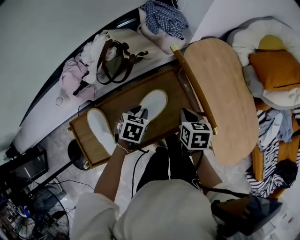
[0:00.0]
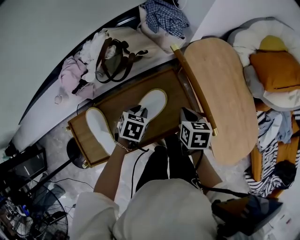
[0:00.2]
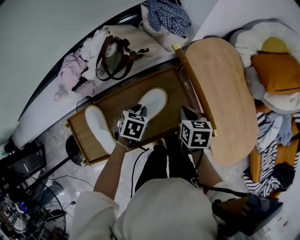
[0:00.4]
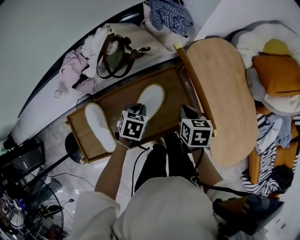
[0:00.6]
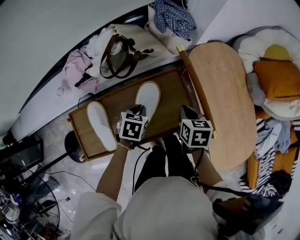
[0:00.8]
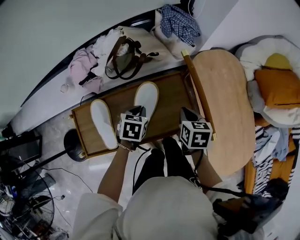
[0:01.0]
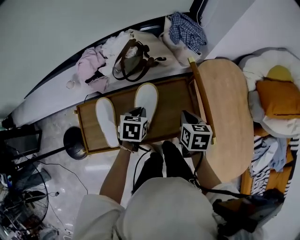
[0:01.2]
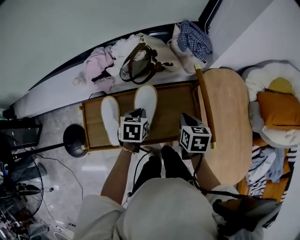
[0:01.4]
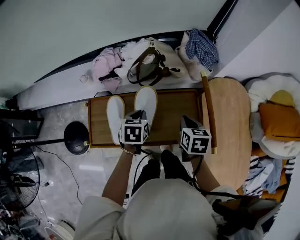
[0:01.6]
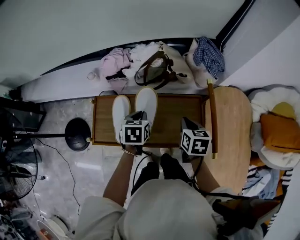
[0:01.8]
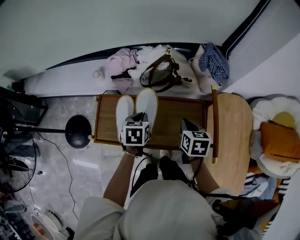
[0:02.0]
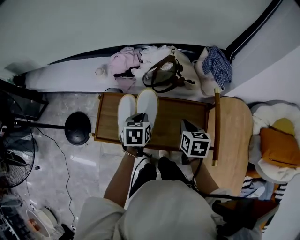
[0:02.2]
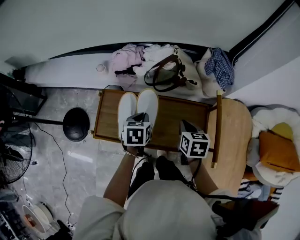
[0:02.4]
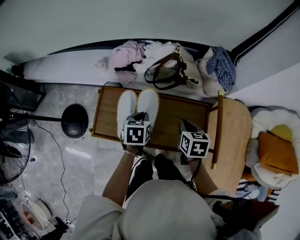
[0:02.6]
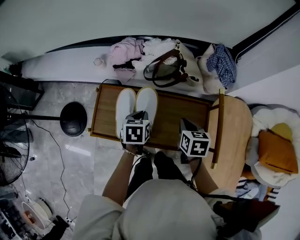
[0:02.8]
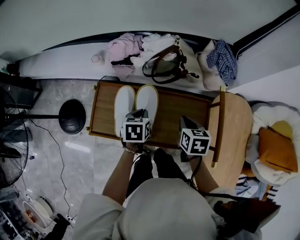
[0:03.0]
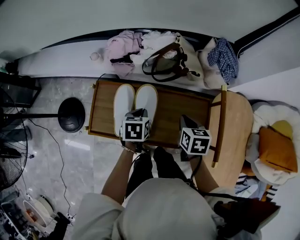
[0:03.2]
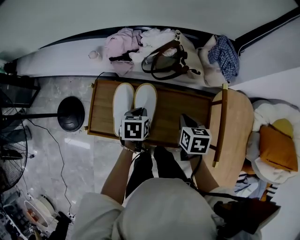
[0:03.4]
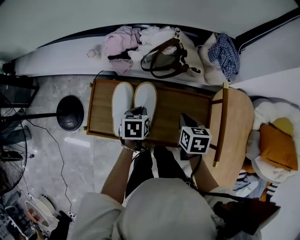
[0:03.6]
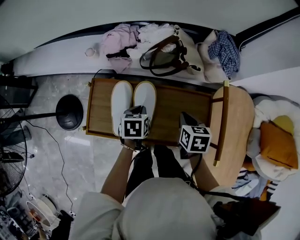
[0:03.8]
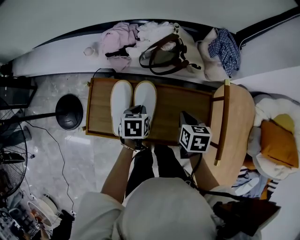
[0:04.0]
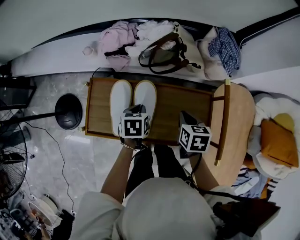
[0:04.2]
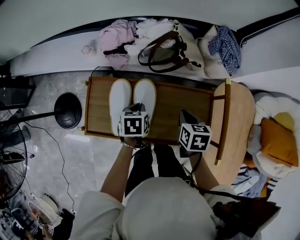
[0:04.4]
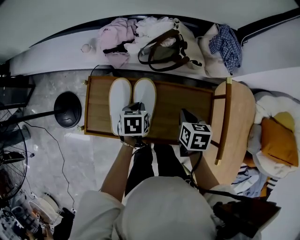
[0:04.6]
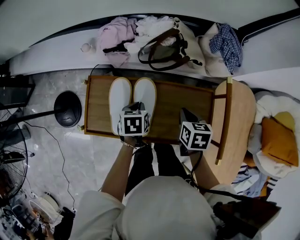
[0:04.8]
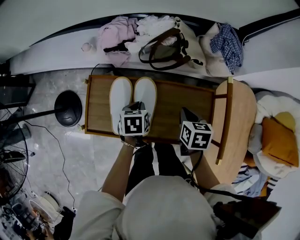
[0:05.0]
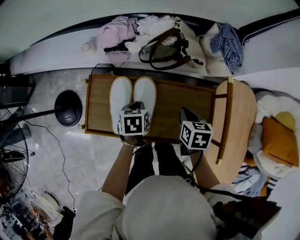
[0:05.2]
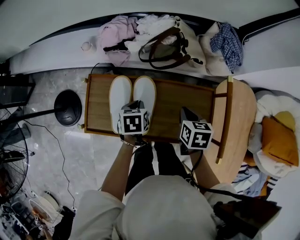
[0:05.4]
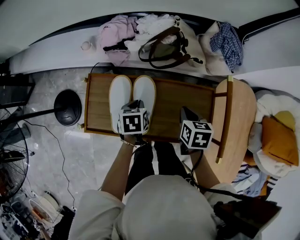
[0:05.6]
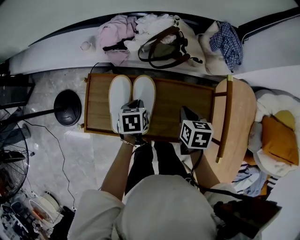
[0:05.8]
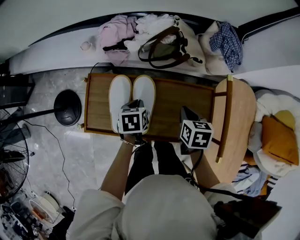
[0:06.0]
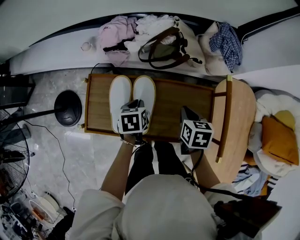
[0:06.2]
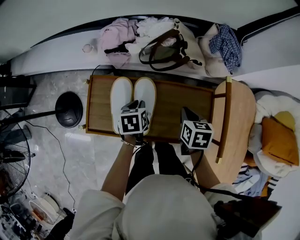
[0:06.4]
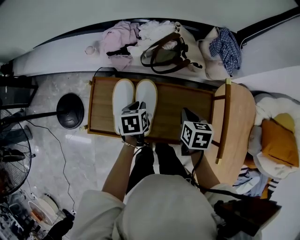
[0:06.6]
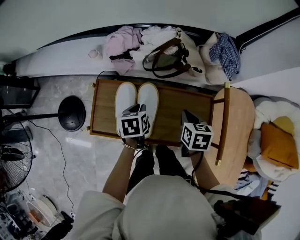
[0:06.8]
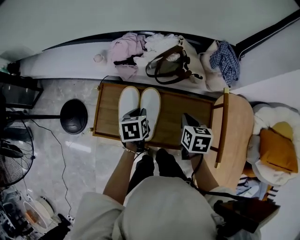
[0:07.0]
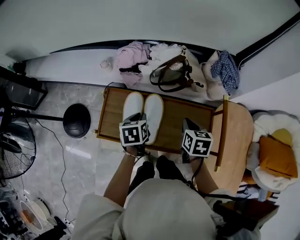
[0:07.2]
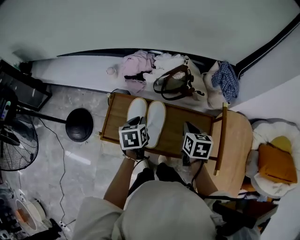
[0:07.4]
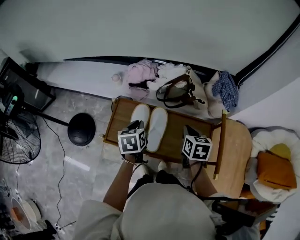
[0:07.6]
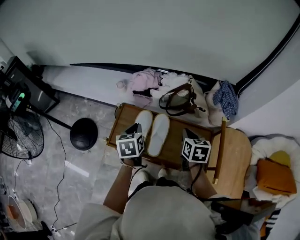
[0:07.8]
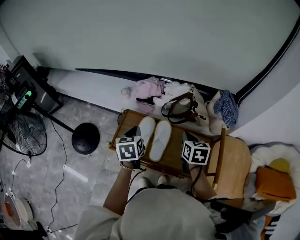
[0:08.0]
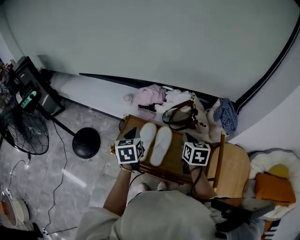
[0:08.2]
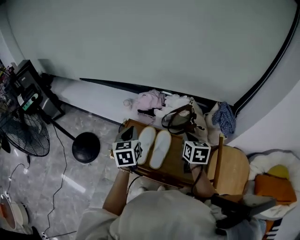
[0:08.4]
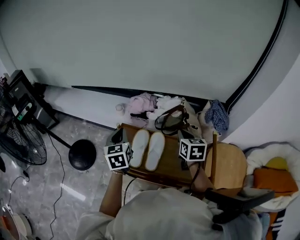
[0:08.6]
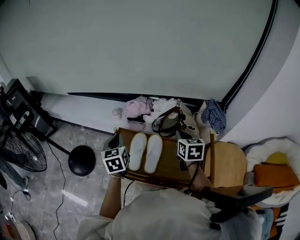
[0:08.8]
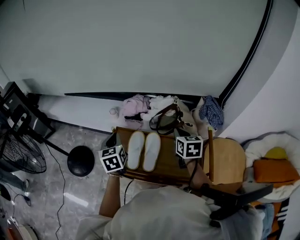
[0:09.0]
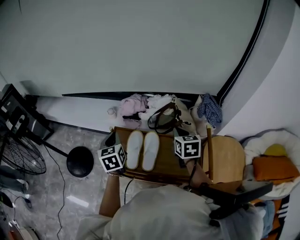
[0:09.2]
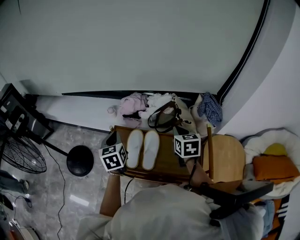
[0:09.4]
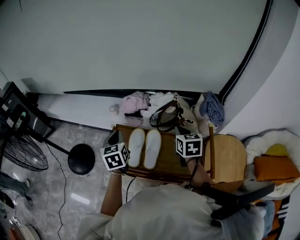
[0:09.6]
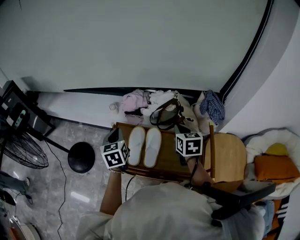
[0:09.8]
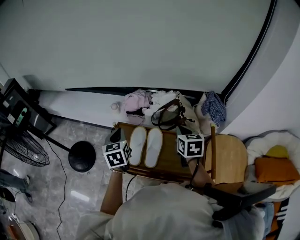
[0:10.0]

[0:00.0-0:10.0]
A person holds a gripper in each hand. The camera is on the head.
0:00.0 to 0:01.4: The left gripper moves to the left and upward, approximately 10 cm, and changes its angle by roughly 30 degrees, while the right gripper moves roughly 5 cm.
0:01.4 to 0:02.8: The two grippers go some 10 cm to the left. The left gripper changes its angle by about 20 degrees.
0:02.8 to 0:04.2: The left gripper moves downward, about 5 cm.
0:04.2 to 0:05.8: The grippers make only small movements.
0:05.8 to 0:07.2: Both grippers travel together upward, about 5 cm.
0:07.2 to 0:08.6: The right gripper shifts roughly 15 cm upward and forward, and rotates some 20 degrees, while the left gripper shifts roughly 20 cm upward and to the left, and rotates approximately 40 degrees.
0:08.6 to 0:10.0: There are only small adjustments of the grippers.

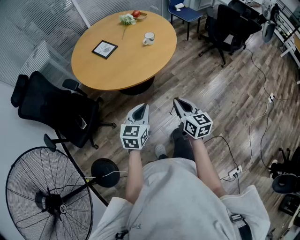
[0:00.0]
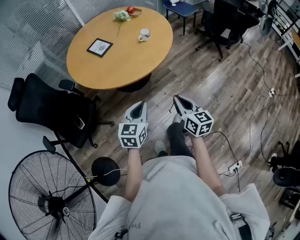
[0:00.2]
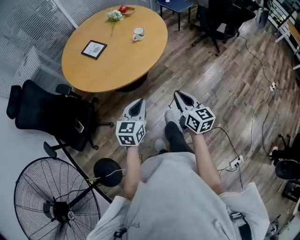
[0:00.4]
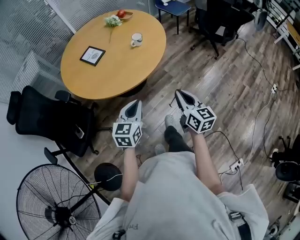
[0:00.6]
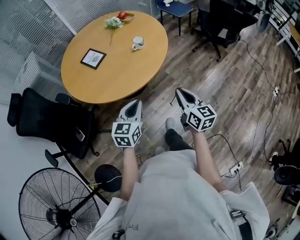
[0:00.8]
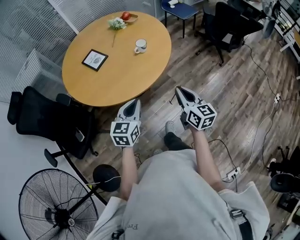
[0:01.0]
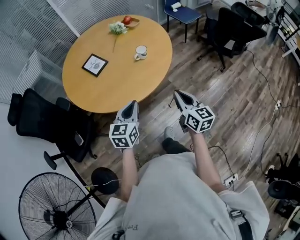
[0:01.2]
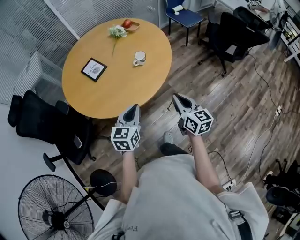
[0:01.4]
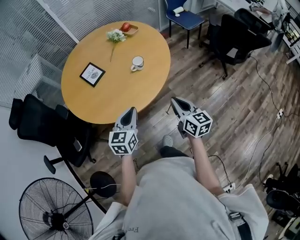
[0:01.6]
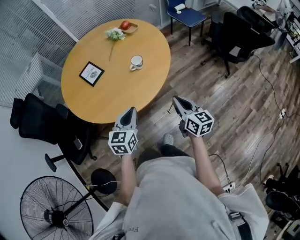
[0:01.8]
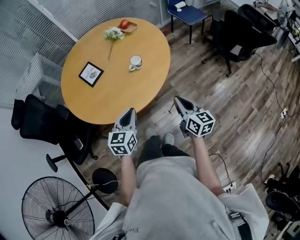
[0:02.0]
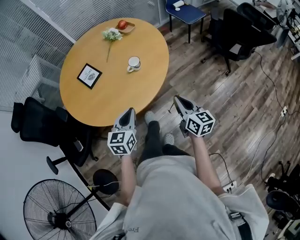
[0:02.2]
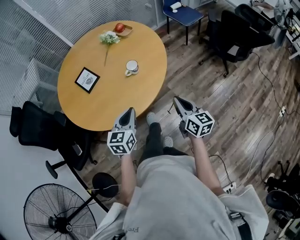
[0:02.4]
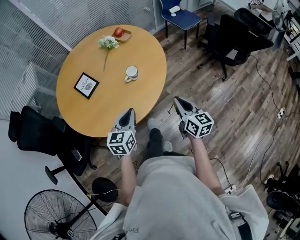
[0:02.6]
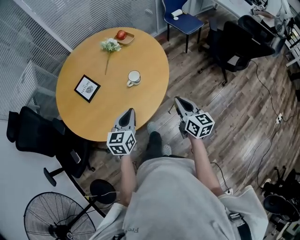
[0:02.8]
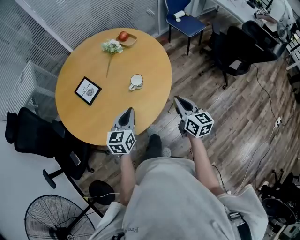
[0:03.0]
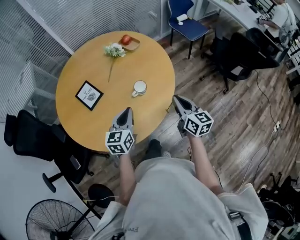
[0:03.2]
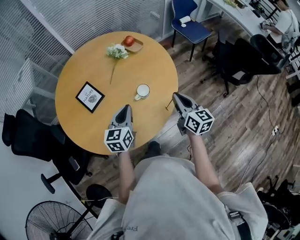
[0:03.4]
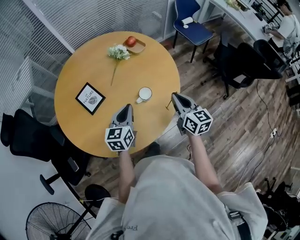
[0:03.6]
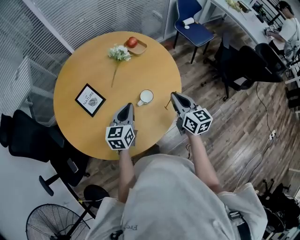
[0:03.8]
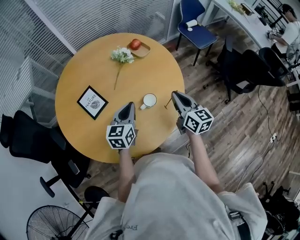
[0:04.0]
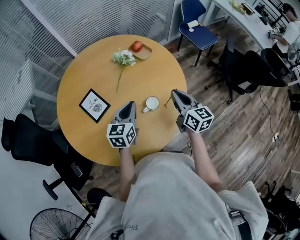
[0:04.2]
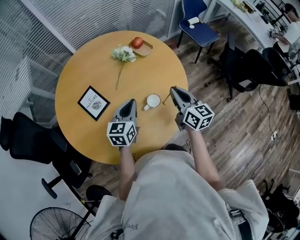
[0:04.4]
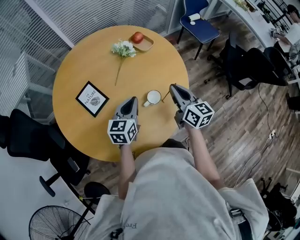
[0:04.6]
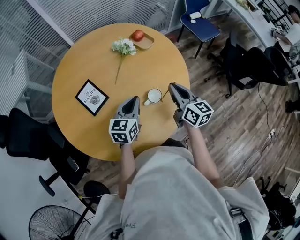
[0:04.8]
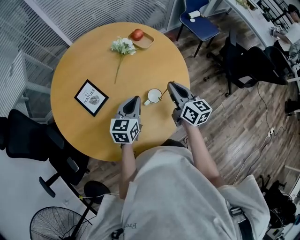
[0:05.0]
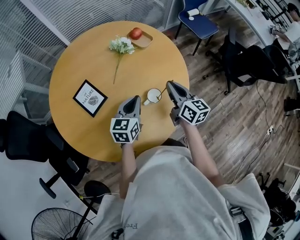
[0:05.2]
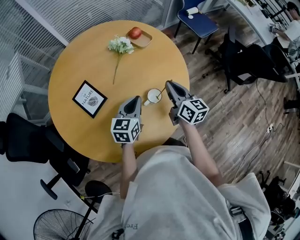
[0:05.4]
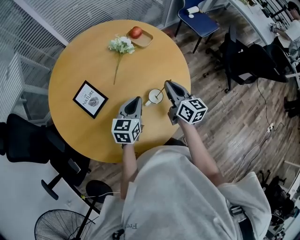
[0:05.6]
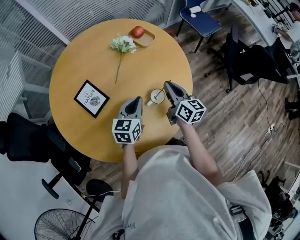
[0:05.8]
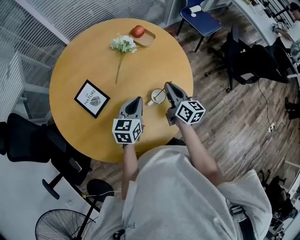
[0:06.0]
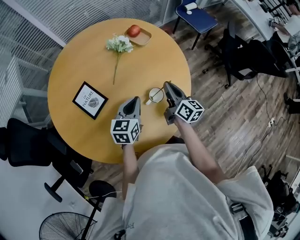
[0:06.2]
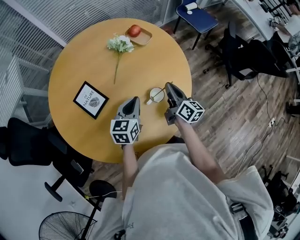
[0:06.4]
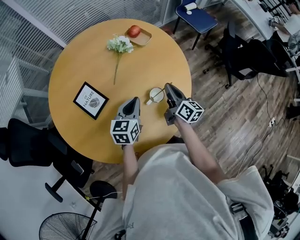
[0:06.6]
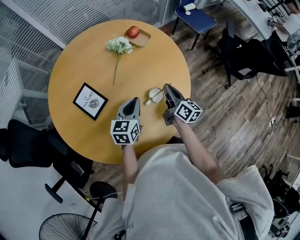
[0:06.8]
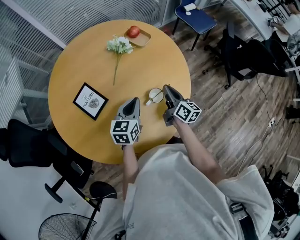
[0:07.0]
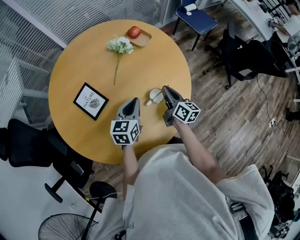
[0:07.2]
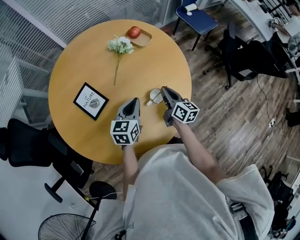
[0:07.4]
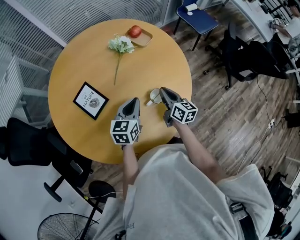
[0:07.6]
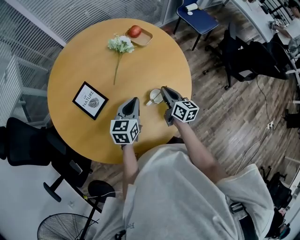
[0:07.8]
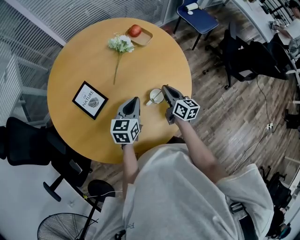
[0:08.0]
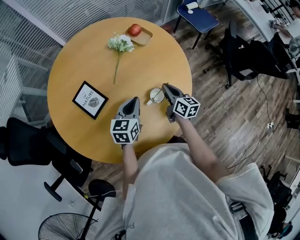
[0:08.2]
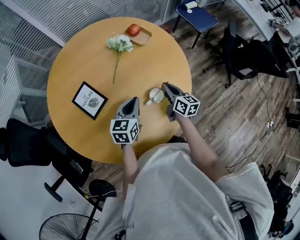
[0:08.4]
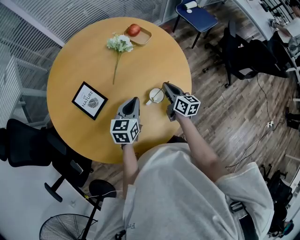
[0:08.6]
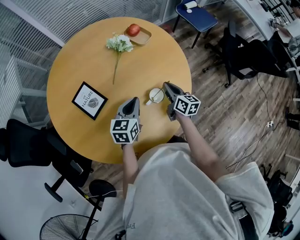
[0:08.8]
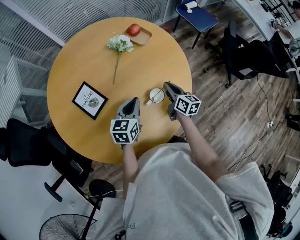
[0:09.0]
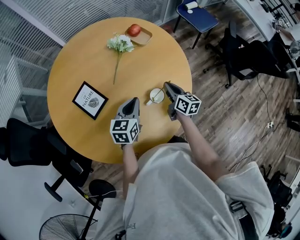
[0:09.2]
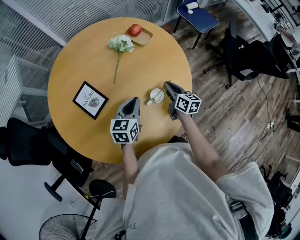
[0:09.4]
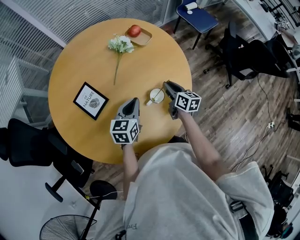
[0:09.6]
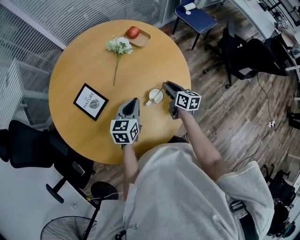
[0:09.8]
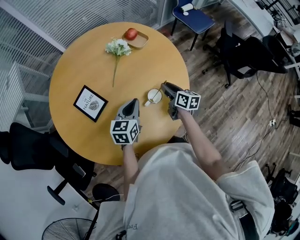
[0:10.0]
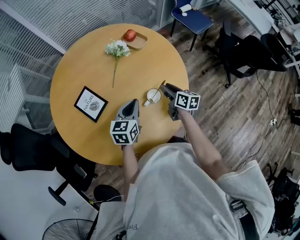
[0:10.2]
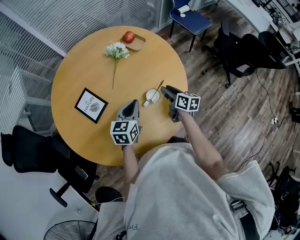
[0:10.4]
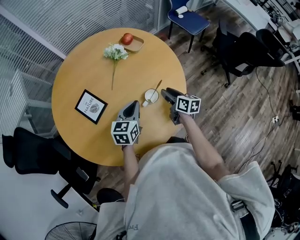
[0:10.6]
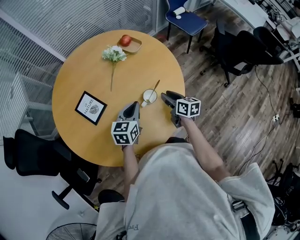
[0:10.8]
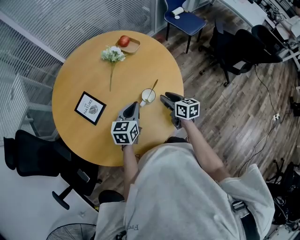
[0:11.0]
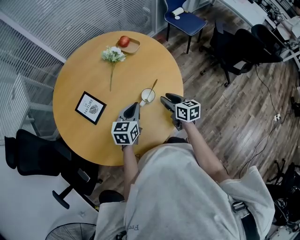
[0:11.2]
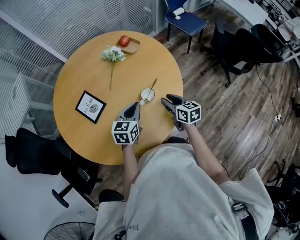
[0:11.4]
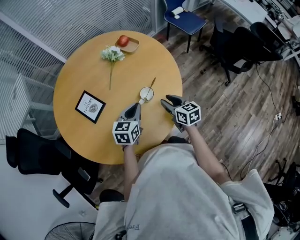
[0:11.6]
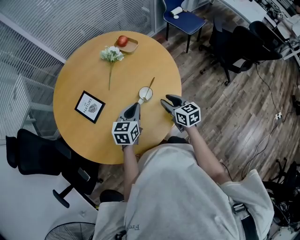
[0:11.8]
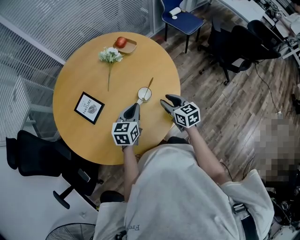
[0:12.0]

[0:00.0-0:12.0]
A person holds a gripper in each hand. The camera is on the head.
0:00.0 to 0:01.6: Both grippers travel together forward, some 25 cm.
0:01.6 to 0:03.0: The two grippers go some 15 cm forward.
0:03.0 to 0:04.4: The right gripper shifts roughly 20 cm forward and to the left, while the left gripper heads forward, covering about 20 cm.
0:04.4 to 0:06.0: The right gripper shifts approximately 10 cm downward, while the left gripper travels downward by about 5 cm.
0:06.0 to 0:07.6: The right gripper travels downward by about 5 cm.
0:07.6 to 0:09.0: The grippers make only small movements.
0:09.0 to 0:10.4: The right gripper opens.
0:10.4 to 0:12.0: The right gripper travels backward by some 10 cm, and changes its angle by about 30 degrees; the left gripper ends up about 5 cm from where it was.

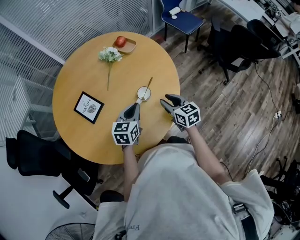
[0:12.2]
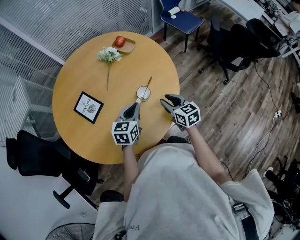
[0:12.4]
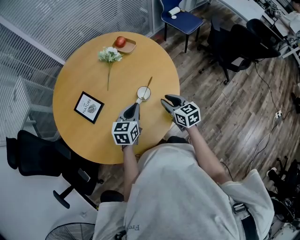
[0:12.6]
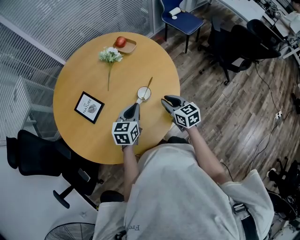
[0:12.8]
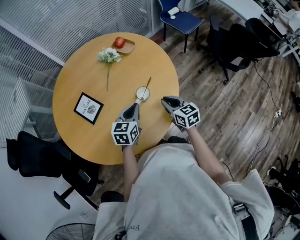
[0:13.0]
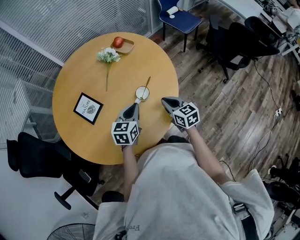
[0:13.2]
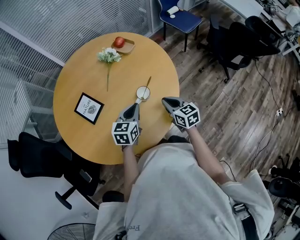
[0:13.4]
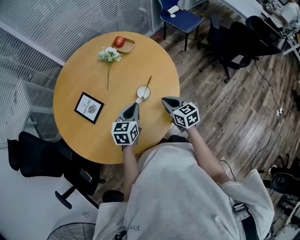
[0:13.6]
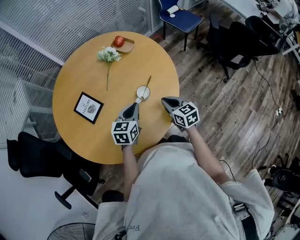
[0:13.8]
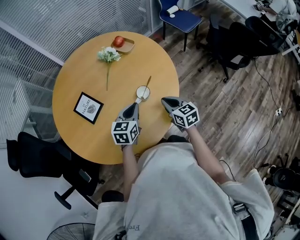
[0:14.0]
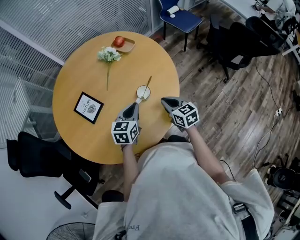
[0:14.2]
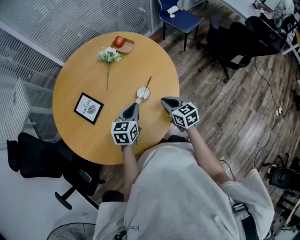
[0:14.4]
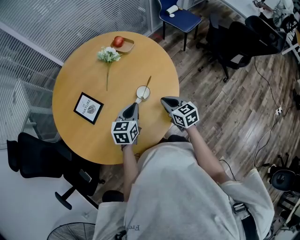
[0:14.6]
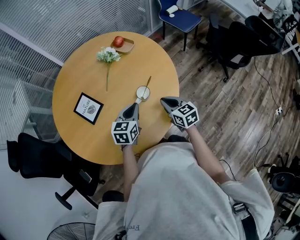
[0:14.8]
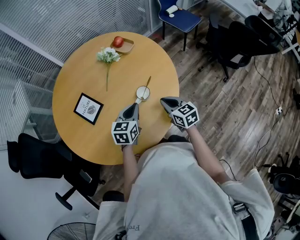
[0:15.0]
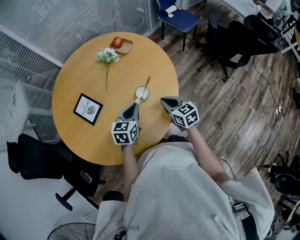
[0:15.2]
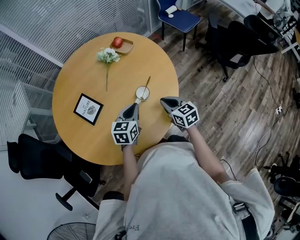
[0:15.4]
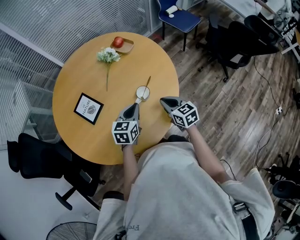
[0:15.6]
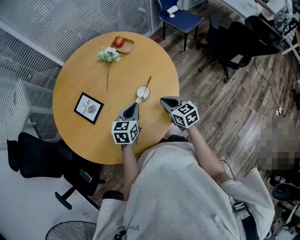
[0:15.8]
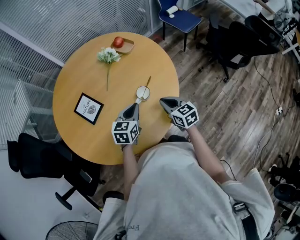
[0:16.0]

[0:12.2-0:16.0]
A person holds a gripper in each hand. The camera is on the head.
0:12.2 to 0:13.4: The right gripper closes its fingers.
0:13.4 to 0:16.0: Neither gripper changes place.
